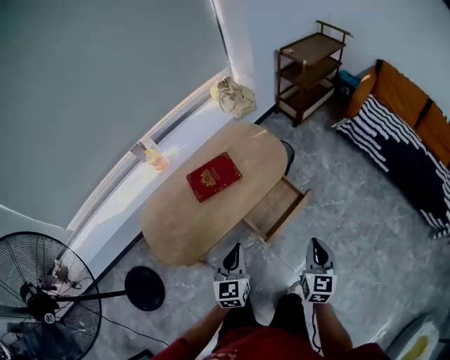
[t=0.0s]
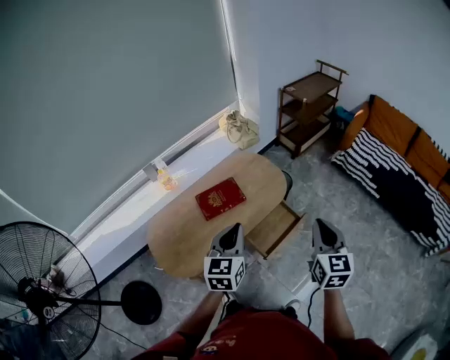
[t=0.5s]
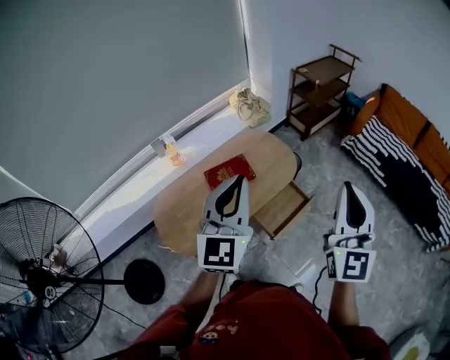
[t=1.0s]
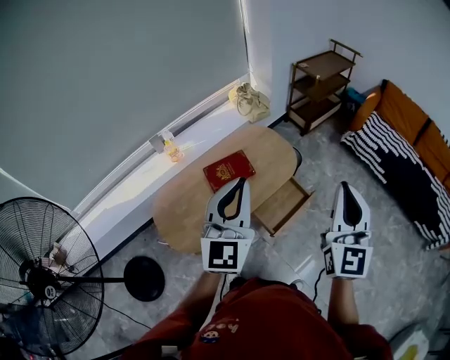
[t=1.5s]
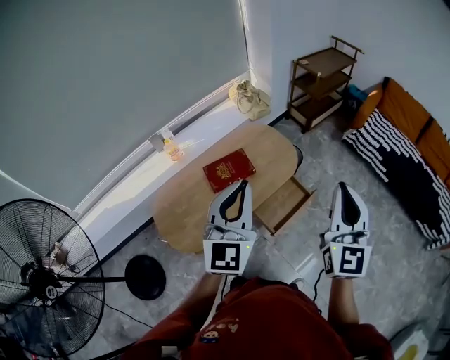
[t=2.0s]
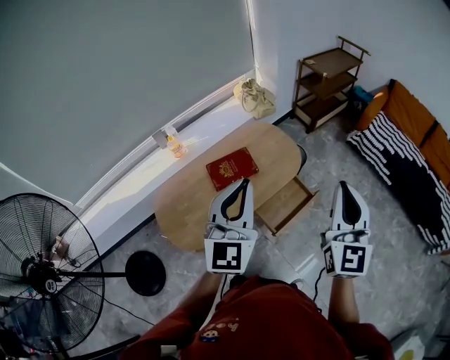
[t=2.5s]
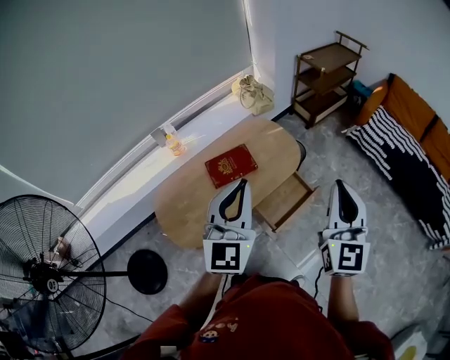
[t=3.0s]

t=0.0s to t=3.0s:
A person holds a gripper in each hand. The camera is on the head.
t=0.0s to t=1.5s: Both grippers travel together upward, roughly 30 cm. The right gripper tilts its fingers roughly 30 degrees upward. The left gripper swivels about 30 degrees.
t=1.5s to t=3.0s: There are only small adjustments of the grippers.

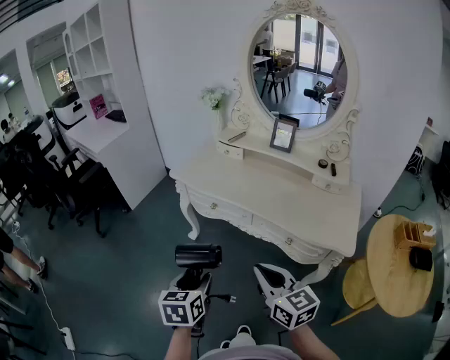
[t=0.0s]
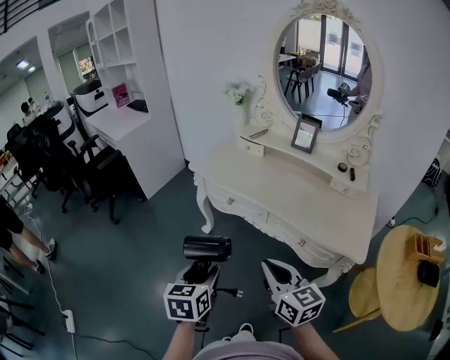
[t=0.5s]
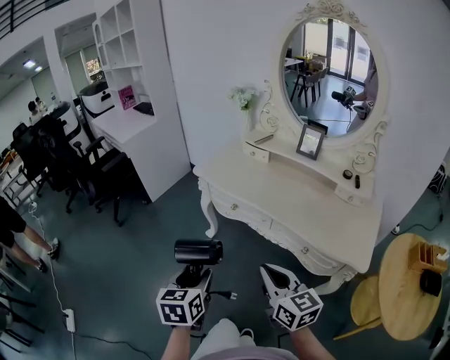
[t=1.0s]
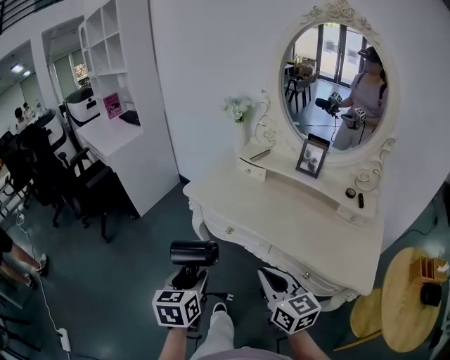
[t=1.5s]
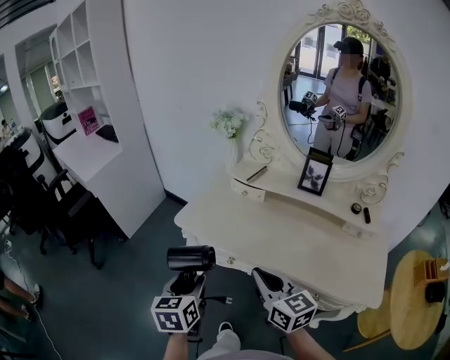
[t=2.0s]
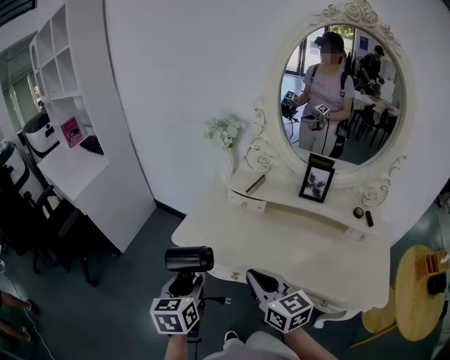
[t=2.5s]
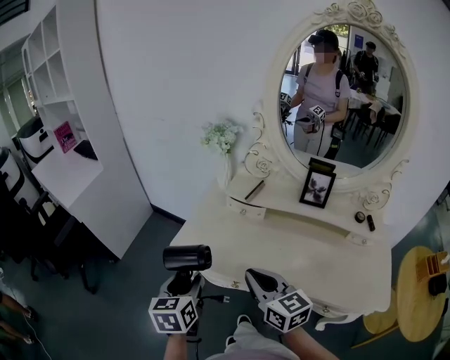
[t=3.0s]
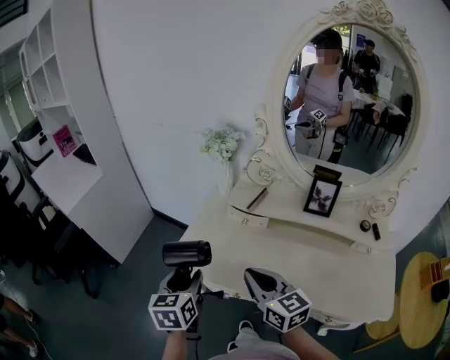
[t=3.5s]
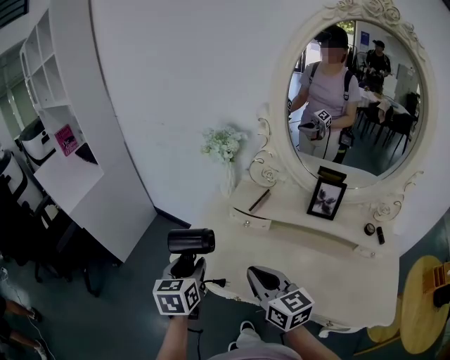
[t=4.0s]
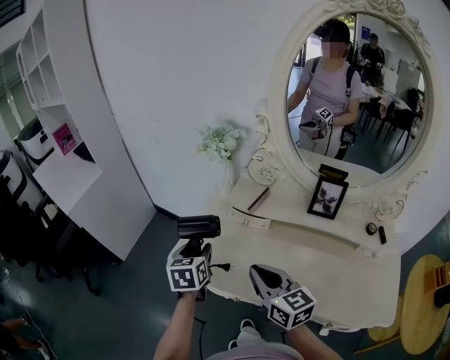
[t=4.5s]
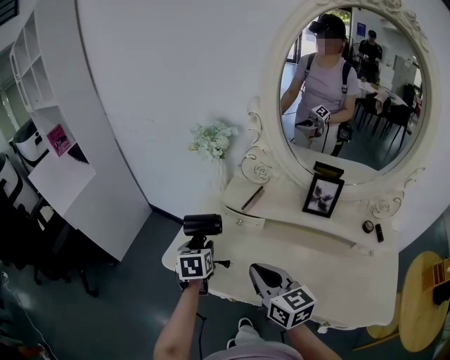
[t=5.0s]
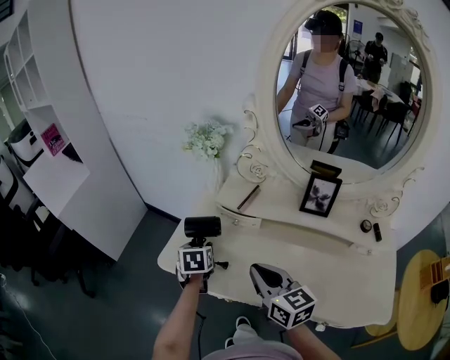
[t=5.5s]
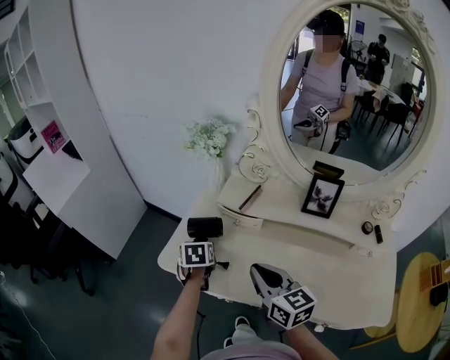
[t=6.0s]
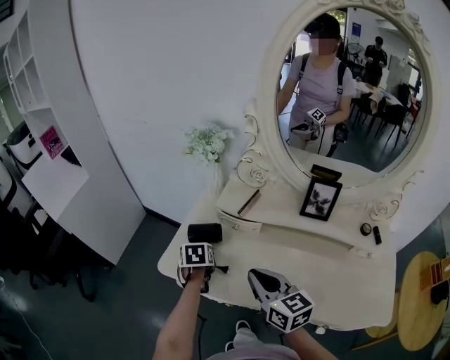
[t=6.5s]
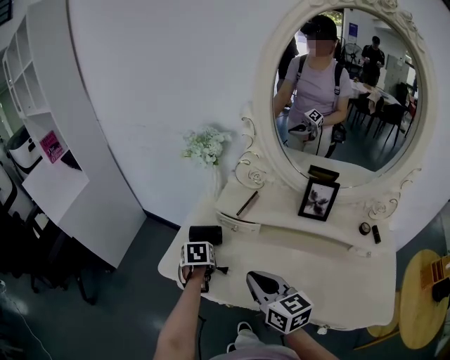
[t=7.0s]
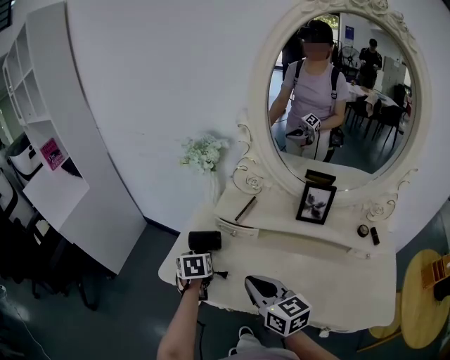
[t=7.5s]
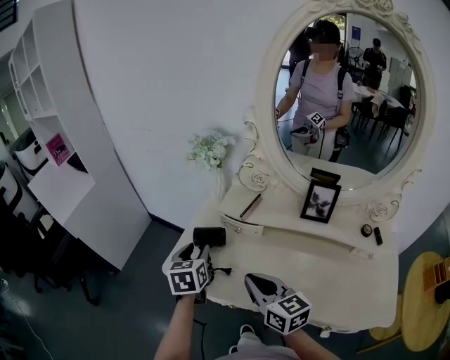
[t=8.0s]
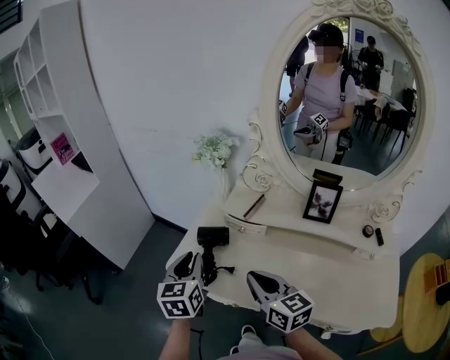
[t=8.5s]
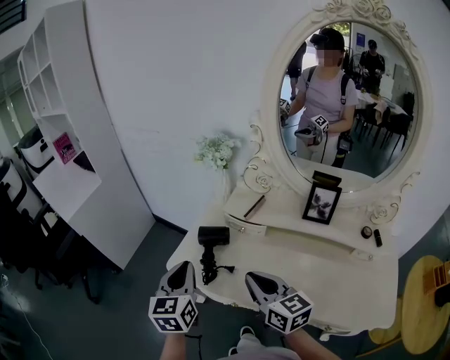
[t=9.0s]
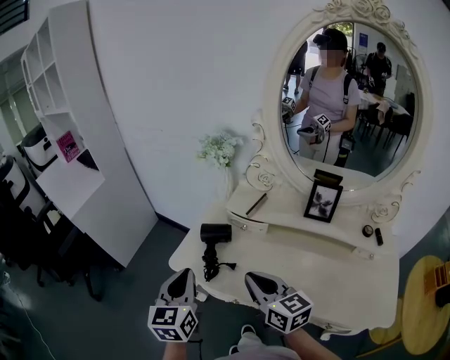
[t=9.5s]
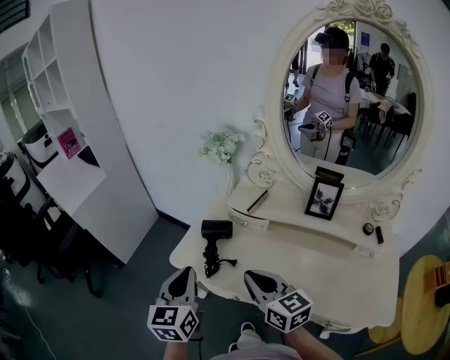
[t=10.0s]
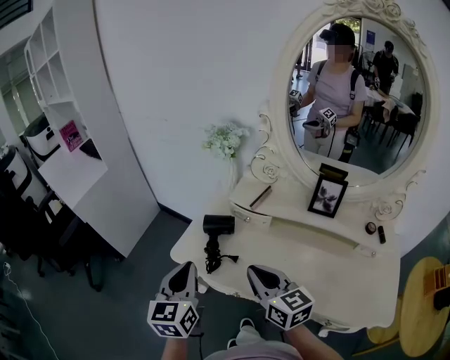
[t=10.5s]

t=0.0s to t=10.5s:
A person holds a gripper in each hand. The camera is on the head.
t=0.0s to t=2.0s: The two grippers go about 30 cm forward.
t=2.0s to t=4.0s: Both grippers move forward, about 20 cm.
t=4.0s to t=6.5s: The left gripper heads downward, forward and to the right, covering some 20 cm, and rotates some 30 degrees; the right gripper moves roughly 5 cm.
t=6.5s to t=8.5s: The left gripper heads upward and backward, covering about 20 cm, points its fingers approximately 40 degrees further upward, and closes.
t=8.5s to t=10.5s: The left gripper moves backward, about 10 cm.

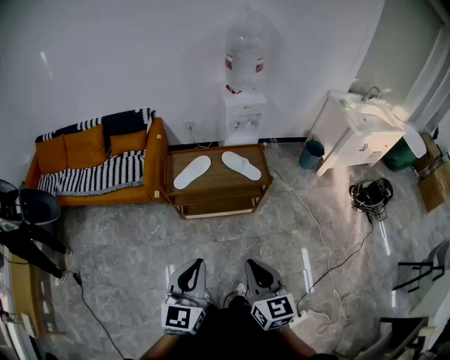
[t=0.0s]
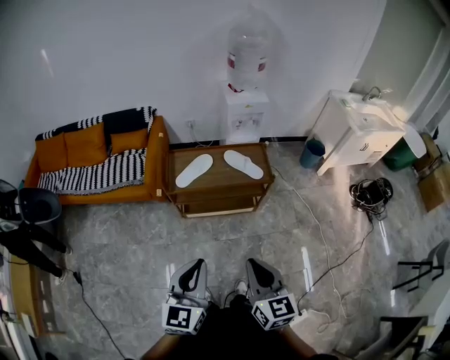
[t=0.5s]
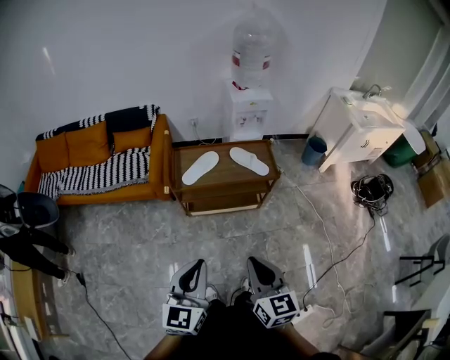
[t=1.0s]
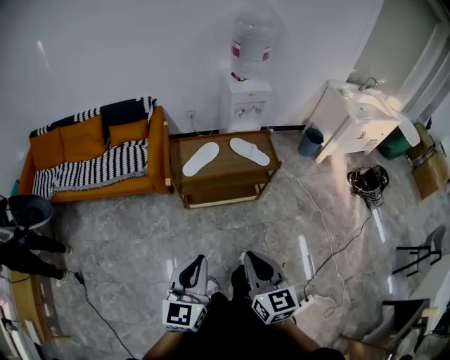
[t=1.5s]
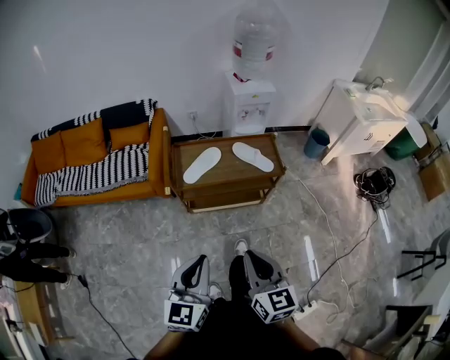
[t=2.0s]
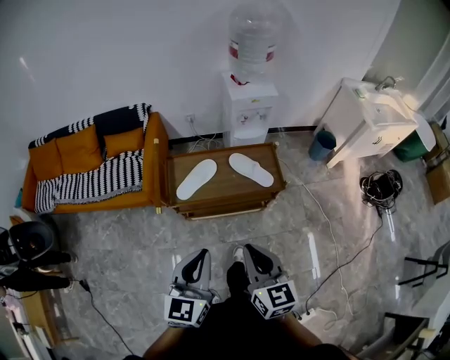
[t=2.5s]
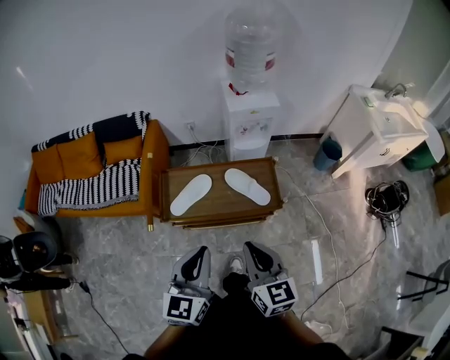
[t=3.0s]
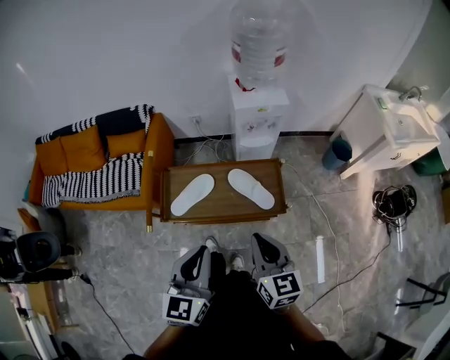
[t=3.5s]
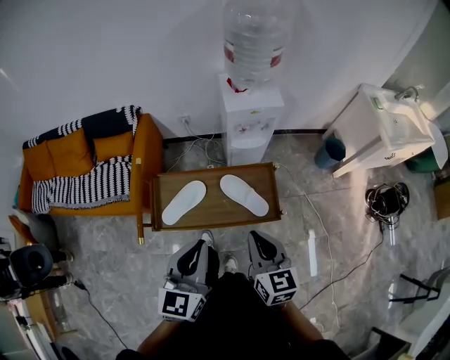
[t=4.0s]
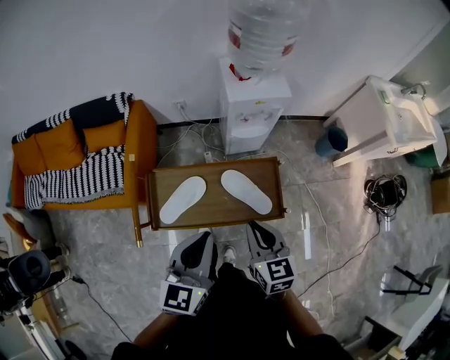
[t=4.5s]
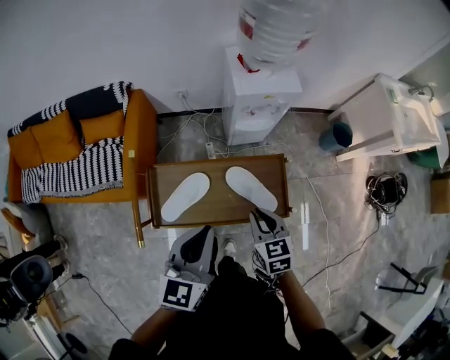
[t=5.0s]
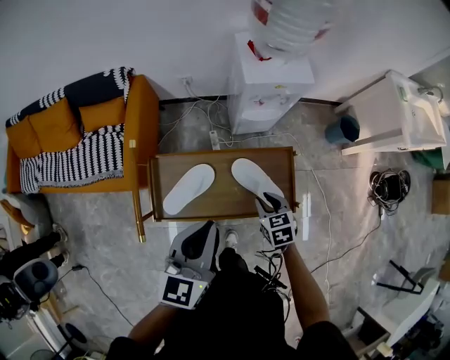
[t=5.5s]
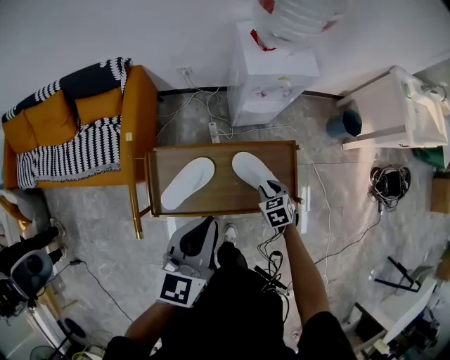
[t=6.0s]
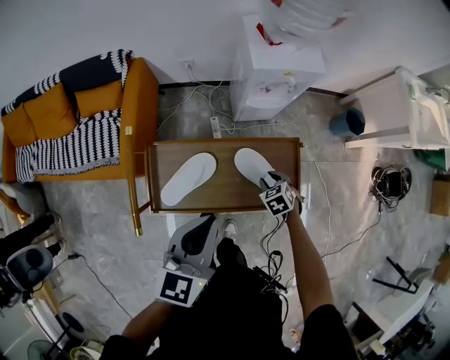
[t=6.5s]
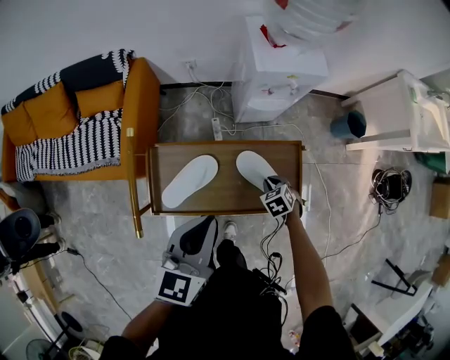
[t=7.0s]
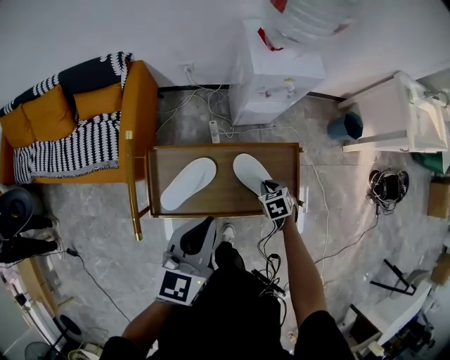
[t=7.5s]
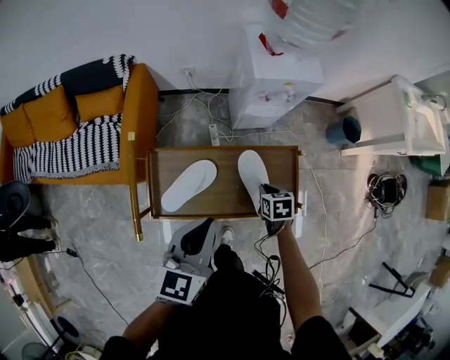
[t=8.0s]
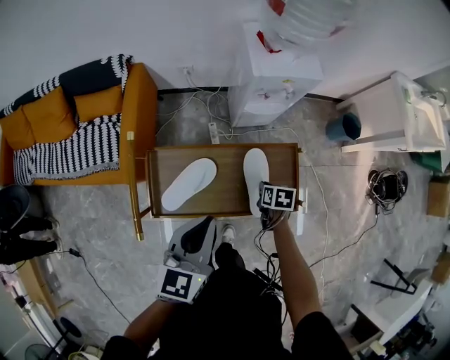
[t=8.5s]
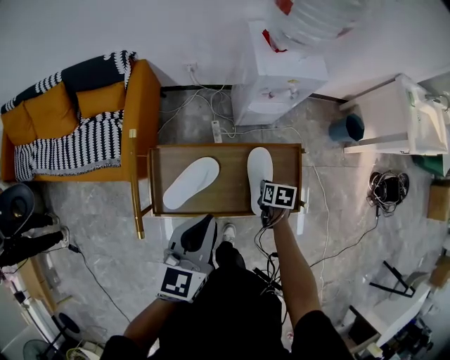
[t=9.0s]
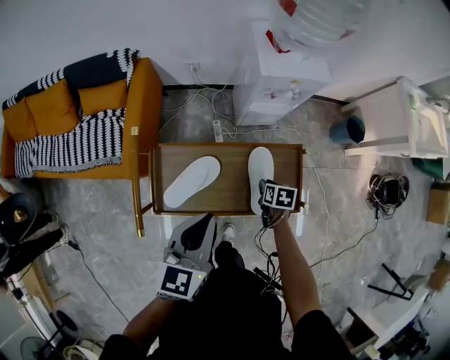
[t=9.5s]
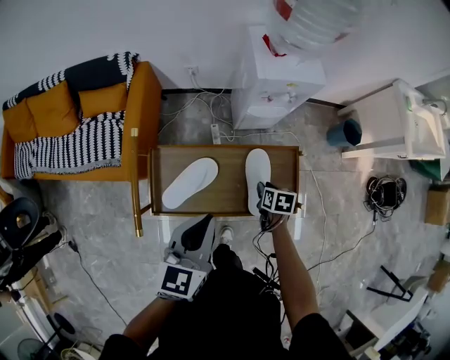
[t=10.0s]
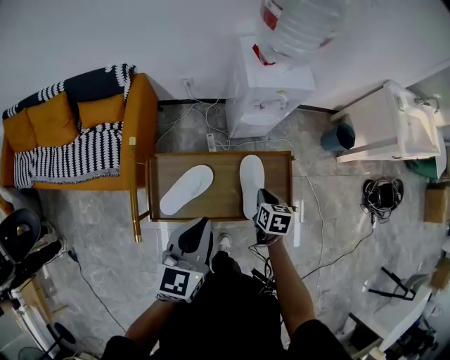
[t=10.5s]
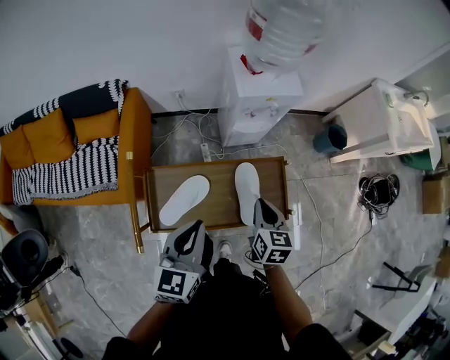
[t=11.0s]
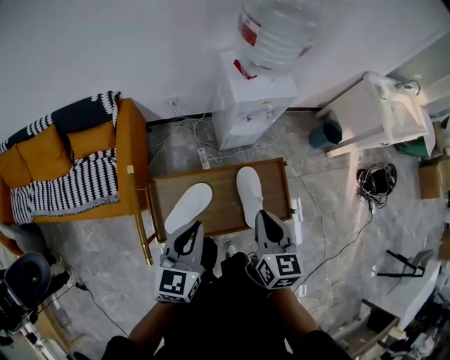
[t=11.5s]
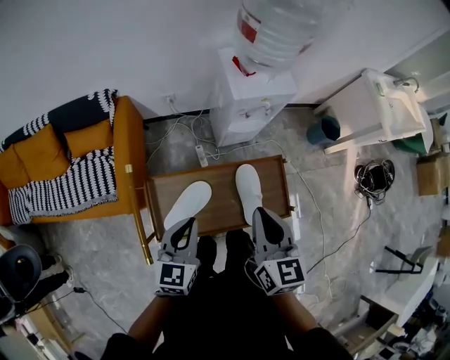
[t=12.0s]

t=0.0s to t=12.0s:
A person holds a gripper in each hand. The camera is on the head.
t=0.0s to t=2.0s: Both grippers move to the left, approximately 10 cm.
t=2.0s to t=4.0s: Both grippers travel together forward and to the right, roughly 40 cm.
t=4.0s to t=6.0s: The left gripper shifts roughly 15 cm forward and downward; the right gripper heads downward and forward, covering approximately 35 cm, angles its fingers downward, by some 40 degrees, and opens.
t=6.0s to t=8.0s: The right gripper turns by roughly 20 degrees.
t=8.0s to t=10.0s: There are only small adjustments of the grippers.
t=10.0s to t=12.0s: The right gripper moves upward, approximately 35 cm, and angles its fingers upward, by some 40 degrees; the left gripper moves to the left, approximately 5 cm.

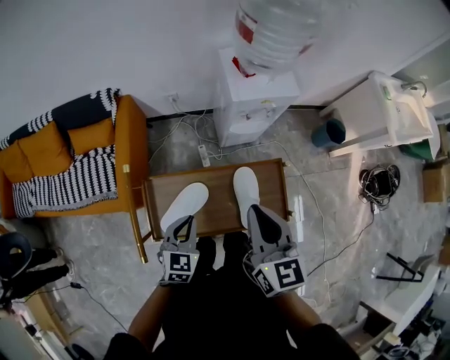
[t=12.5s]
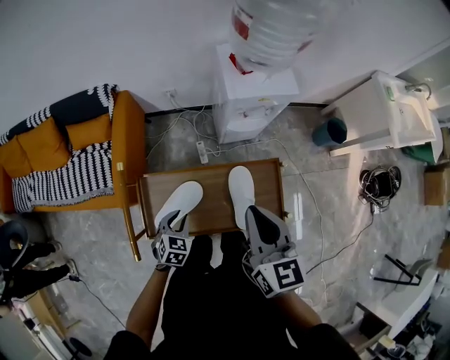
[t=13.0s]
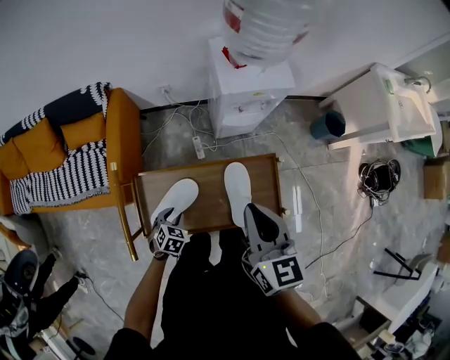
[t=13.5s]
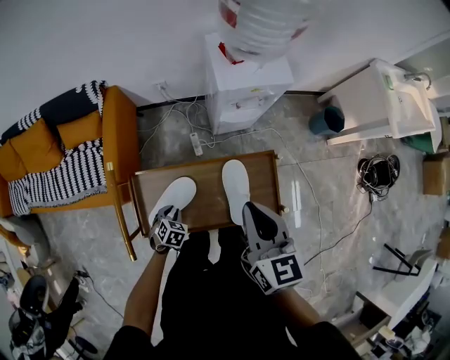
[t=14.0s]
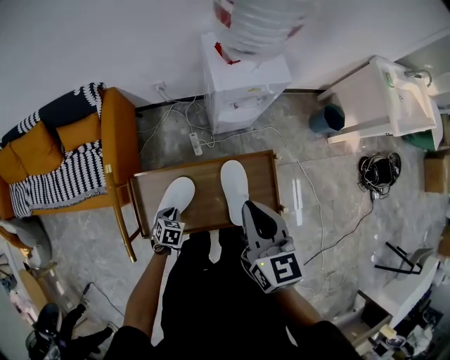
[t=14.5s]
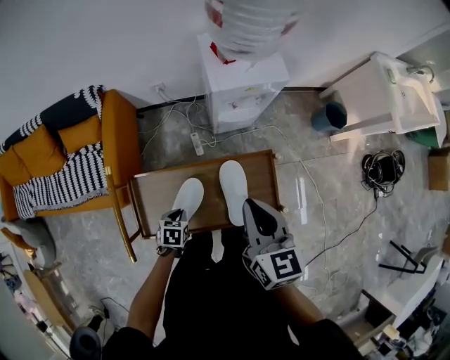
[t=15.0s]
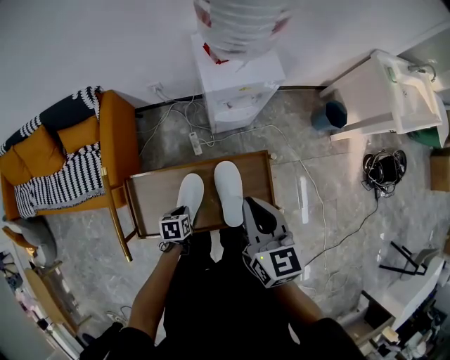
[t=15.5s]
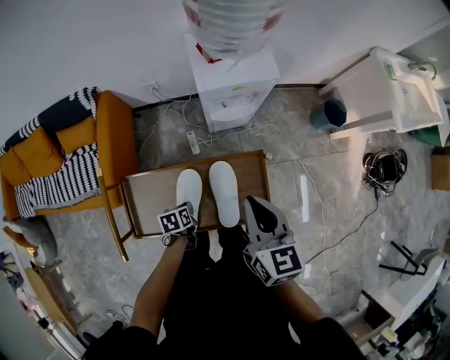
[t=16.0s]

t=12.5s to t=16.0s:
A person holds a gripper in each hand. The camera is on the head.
t=12.5s to t=14.5s: The right gripper ends up some 5 cm from where it was; the left gripper goes roughly 20 cm downward, tilts its fingers about 30 degrees downward, and opens and closes again.
t=14.5s to t=16.0s: Both grippers travel together to the right, roughly 10 cm. The left gripper swivels some 40 degrees.
